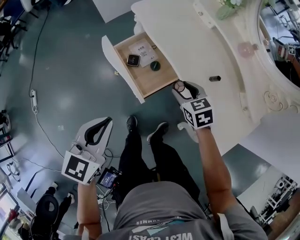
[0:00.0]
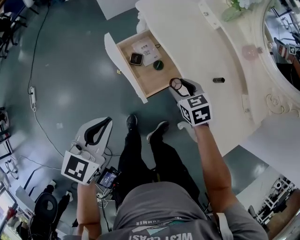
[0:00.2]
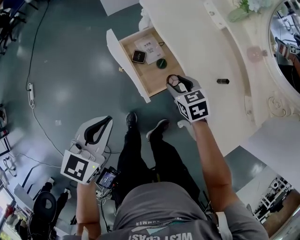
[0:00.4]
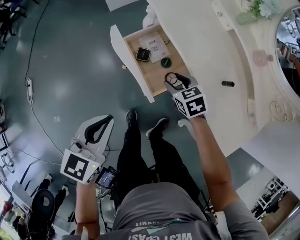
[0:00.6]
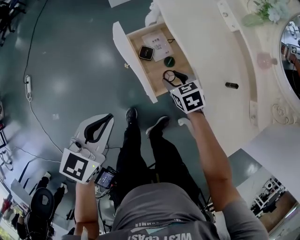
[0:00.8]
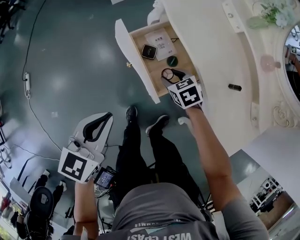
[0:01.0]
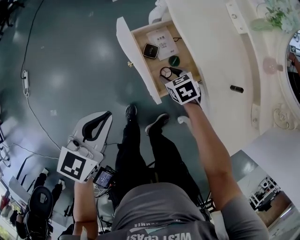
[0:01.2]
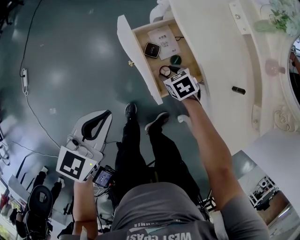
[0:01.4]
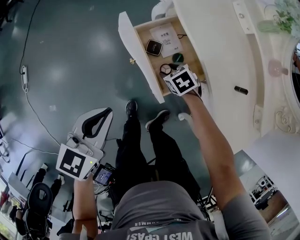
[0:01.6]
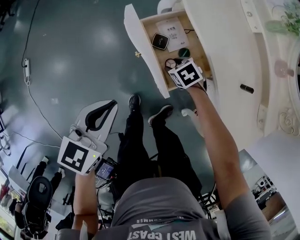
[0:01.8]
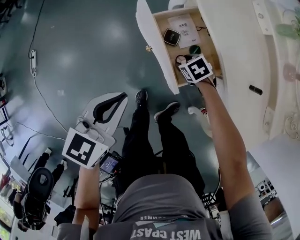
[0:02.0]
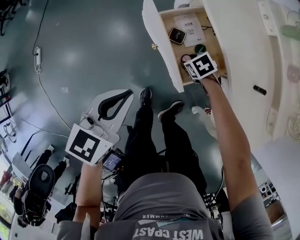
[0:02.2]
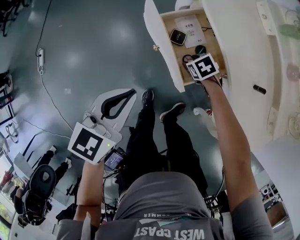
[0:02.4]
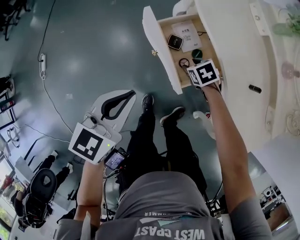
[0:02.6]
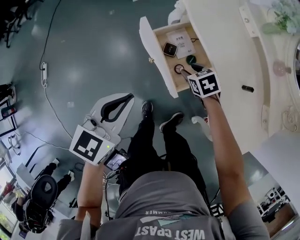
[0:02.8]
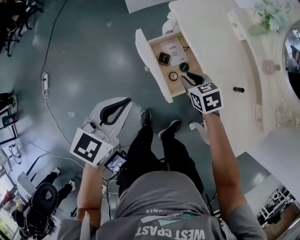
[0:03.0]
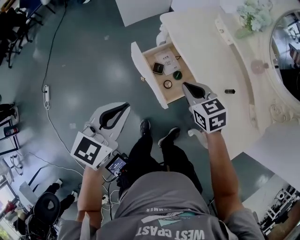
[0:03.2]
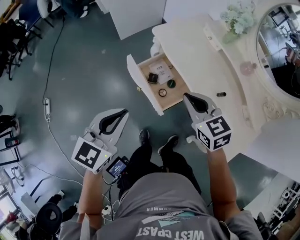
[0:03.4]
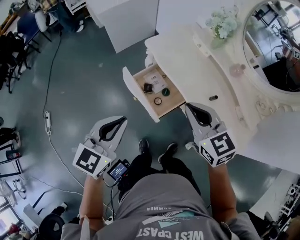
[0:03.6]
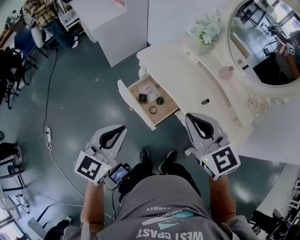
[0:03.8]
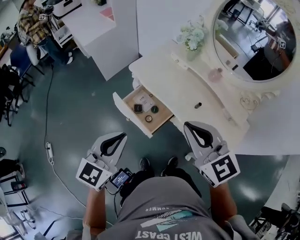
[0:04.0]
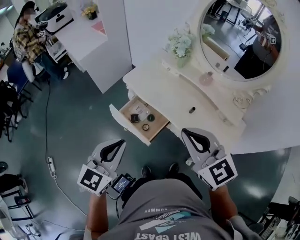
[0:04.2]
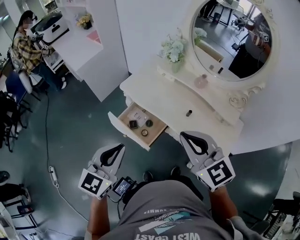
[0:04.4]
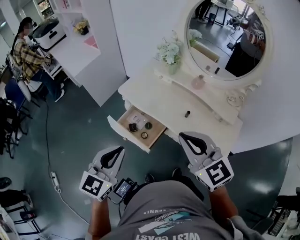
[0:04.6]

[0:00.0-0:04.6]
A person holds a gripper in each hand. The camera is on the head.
0:00.0 to 0:01.6: The left gripper heads to the left, downward and forward, covering about 15 cm. The right gripper heads downward and to the left, covering approximately 25 cm, and swivels about 30 degrees.
0:01.6 to 0:03.0: The left gripper shifts some 10 cm upward, while the right gripper shifts approximately 20 cm upward, turns by some 20 degrees, and closes its fingers.
0:03.0 to 0:04.6: The right gripper moves upward and backward, approximately 40 cm, tilts its fingers some 40 degrees upward, and closes, while the left gripper goes some 20 cm upward and to the right, and swivels some 30 degrees.

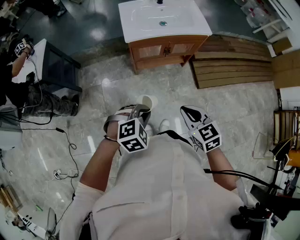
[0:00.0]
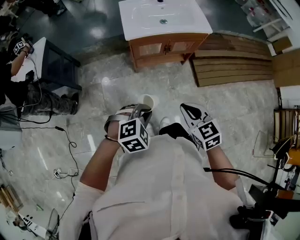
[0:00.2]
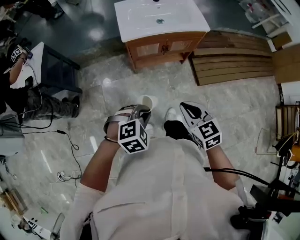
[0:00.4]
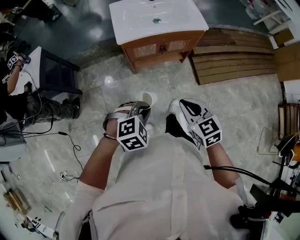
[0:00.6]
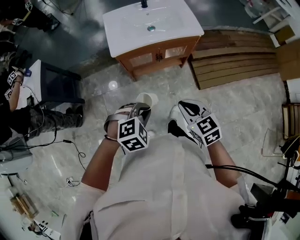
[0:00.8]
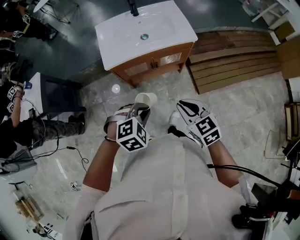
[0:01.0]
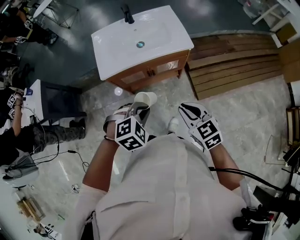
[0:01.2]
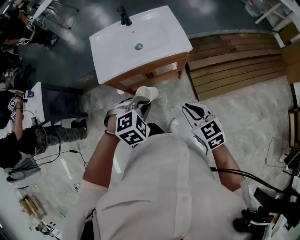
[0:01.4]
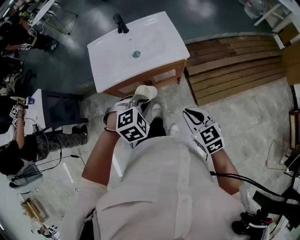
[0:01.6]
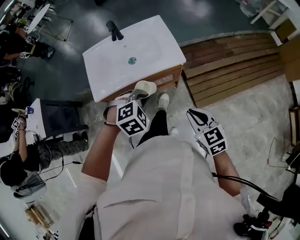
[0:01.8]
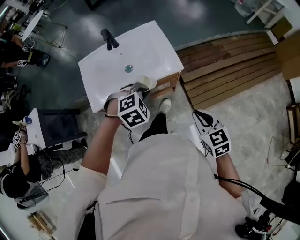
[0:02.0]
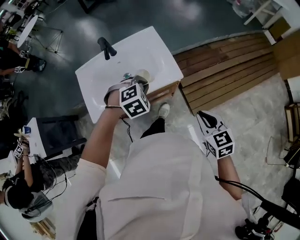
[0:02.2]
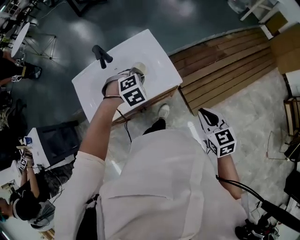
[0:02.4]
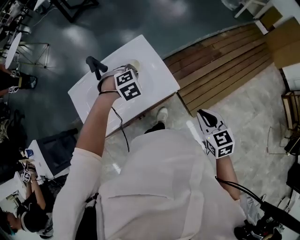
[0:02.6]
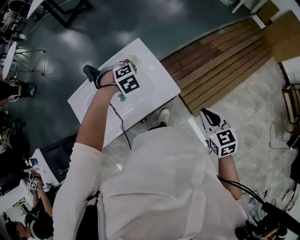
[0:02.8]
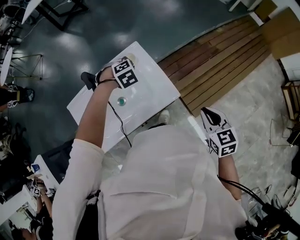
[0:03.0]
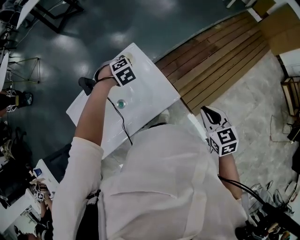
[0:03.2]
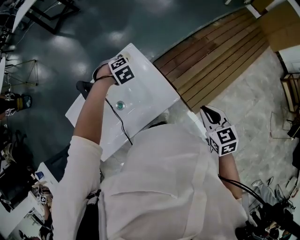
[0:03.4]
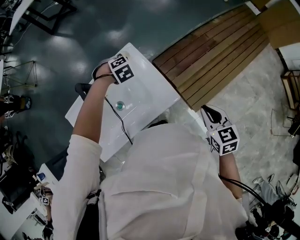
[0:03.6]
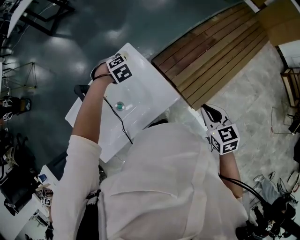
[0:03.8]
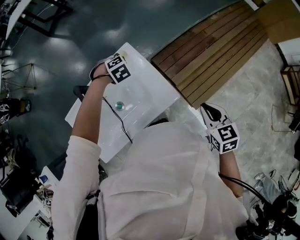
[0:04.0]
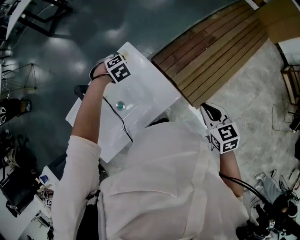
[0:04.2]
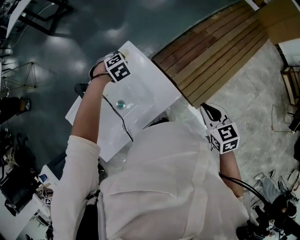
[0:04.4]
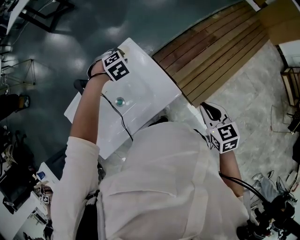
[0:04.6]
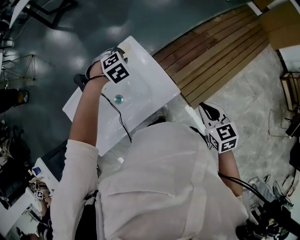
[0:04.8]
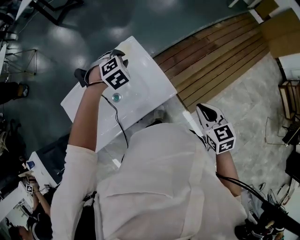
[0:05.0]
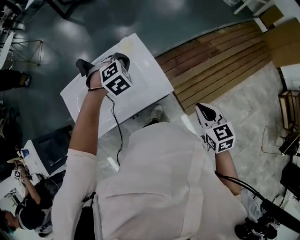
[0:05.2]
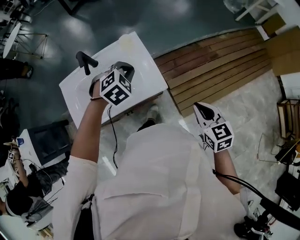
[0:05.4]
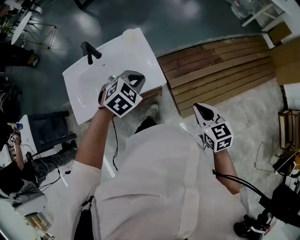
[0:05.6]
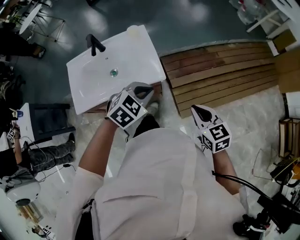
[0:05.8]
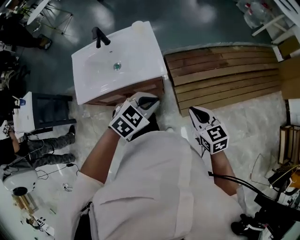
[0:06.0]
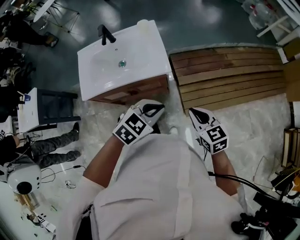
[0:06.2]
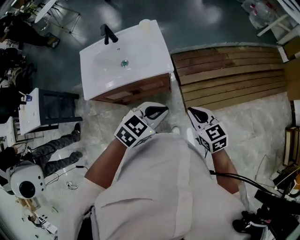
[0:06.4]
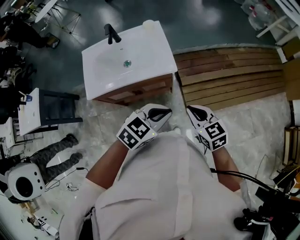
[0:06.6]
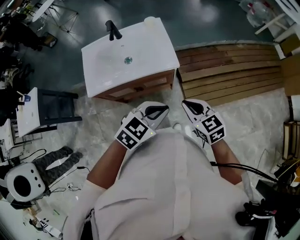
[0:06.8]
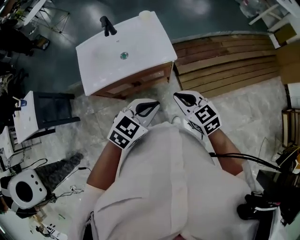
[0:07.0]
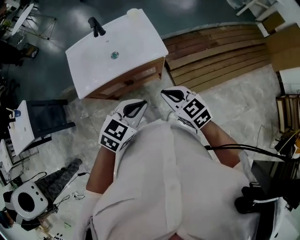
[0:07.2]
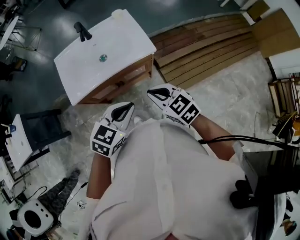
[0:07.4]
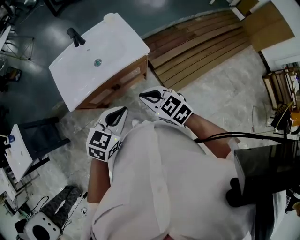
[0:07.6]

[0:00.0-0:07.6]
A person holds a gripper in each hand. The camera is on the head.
0:00.0 to 0:01.6: Both grippers travel together forward and to the right, about 35 cm.
0:01.6 to 0:03.0: The left gripper moves forward, approximately 50 cm; the right gripper travels forward and to the right by some 25 cm, and swivels approximately 30 degrees.
0:03.0 to 0:04.6: The left gripper moves about 5 cm.
0:04.6 to 0:06.0: The left gripper ends up approximately 50 cm from where it was, and tilts its fingers roughly 30 degrees upward. Meanwhile the right gripper moves roughly 15 cm, and rotates some 30 degrees.
0:06.0 to 0:07.6: The left gripper moves to the left and backward, roughly 20 cm, while the right gripper moves to the left, about 20 cm.

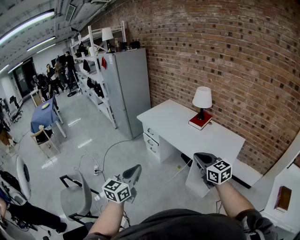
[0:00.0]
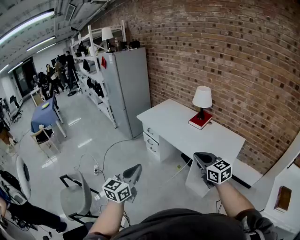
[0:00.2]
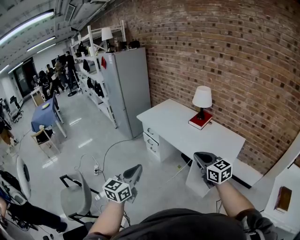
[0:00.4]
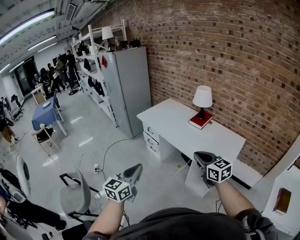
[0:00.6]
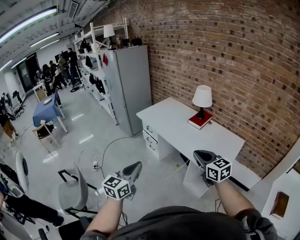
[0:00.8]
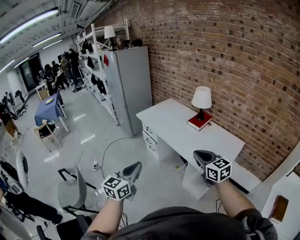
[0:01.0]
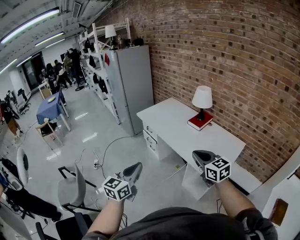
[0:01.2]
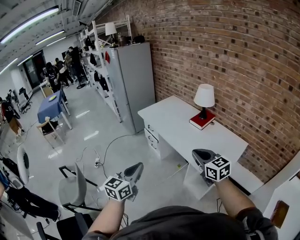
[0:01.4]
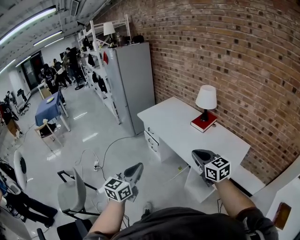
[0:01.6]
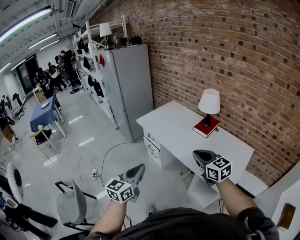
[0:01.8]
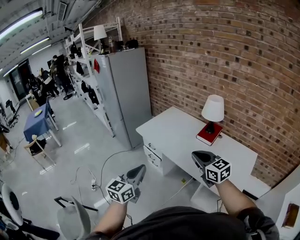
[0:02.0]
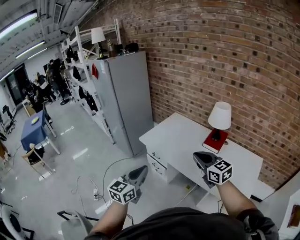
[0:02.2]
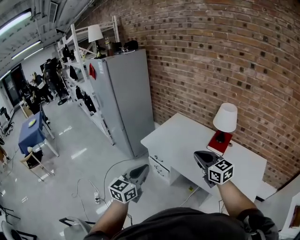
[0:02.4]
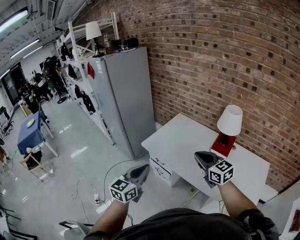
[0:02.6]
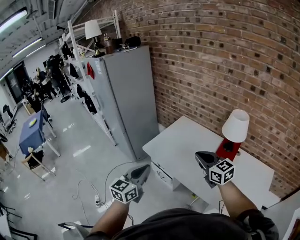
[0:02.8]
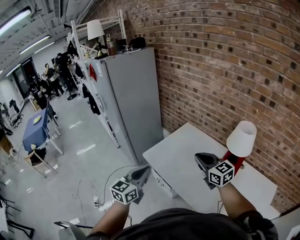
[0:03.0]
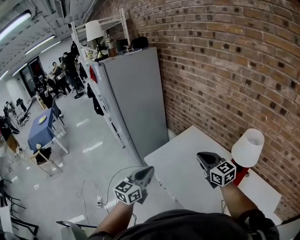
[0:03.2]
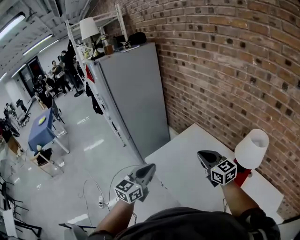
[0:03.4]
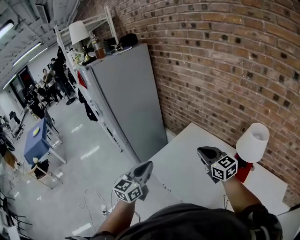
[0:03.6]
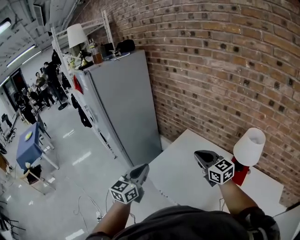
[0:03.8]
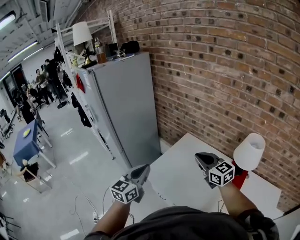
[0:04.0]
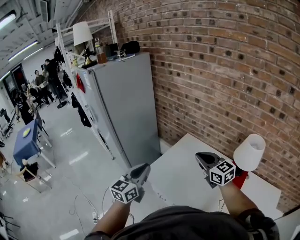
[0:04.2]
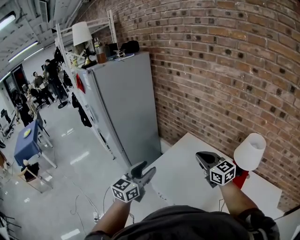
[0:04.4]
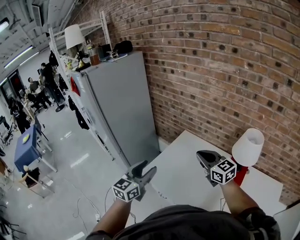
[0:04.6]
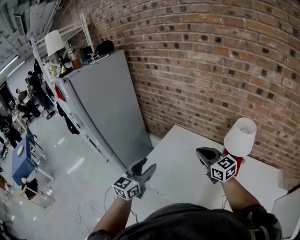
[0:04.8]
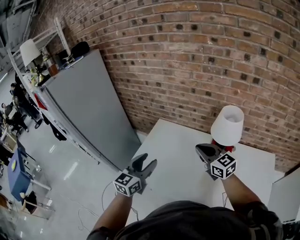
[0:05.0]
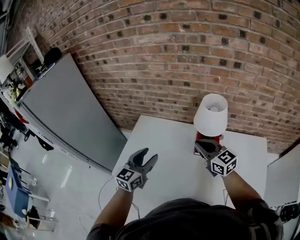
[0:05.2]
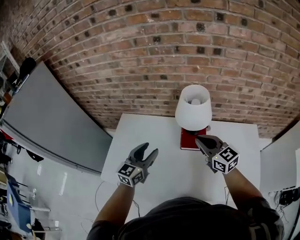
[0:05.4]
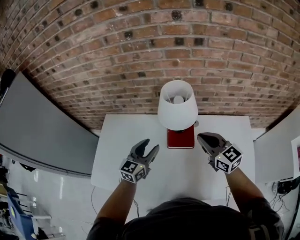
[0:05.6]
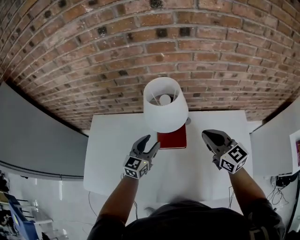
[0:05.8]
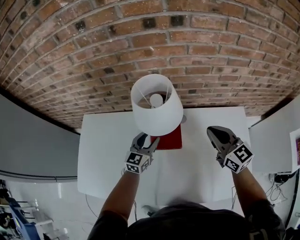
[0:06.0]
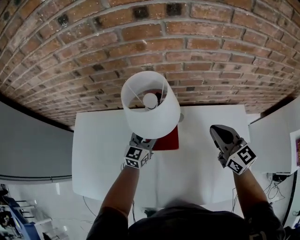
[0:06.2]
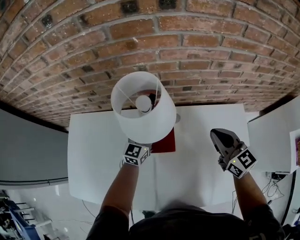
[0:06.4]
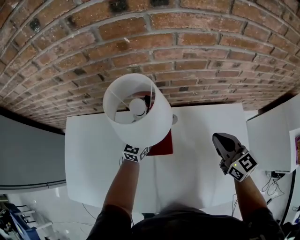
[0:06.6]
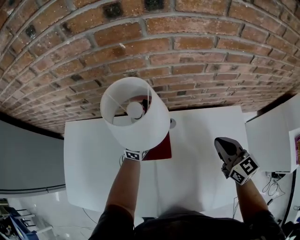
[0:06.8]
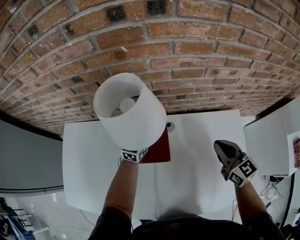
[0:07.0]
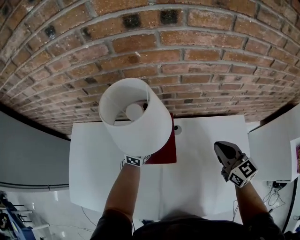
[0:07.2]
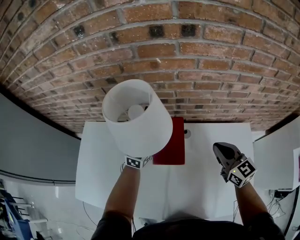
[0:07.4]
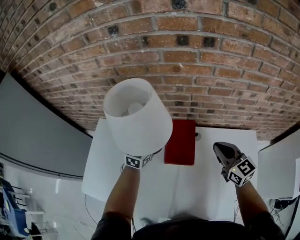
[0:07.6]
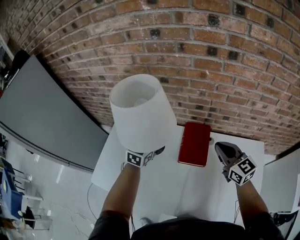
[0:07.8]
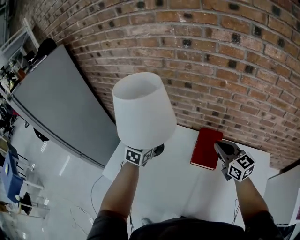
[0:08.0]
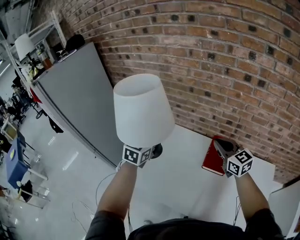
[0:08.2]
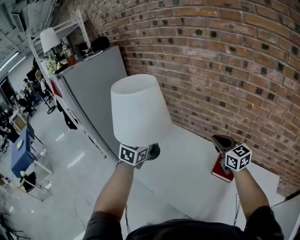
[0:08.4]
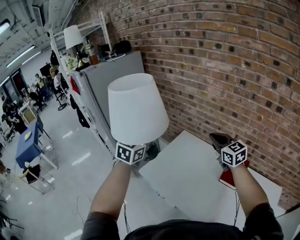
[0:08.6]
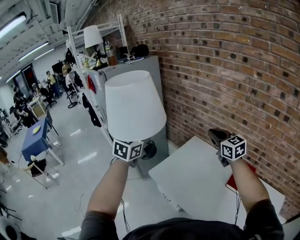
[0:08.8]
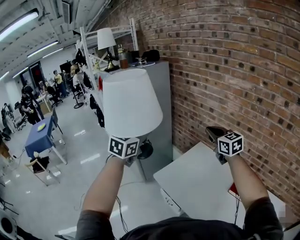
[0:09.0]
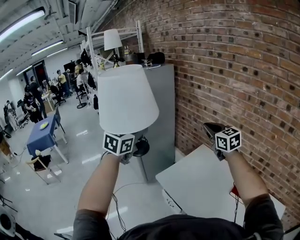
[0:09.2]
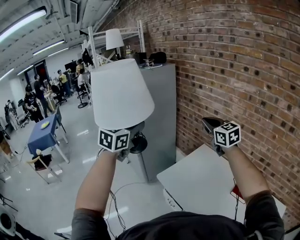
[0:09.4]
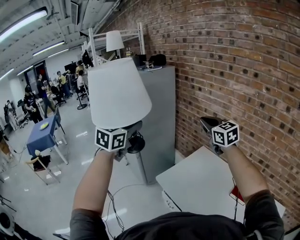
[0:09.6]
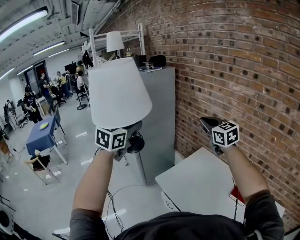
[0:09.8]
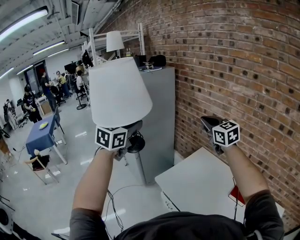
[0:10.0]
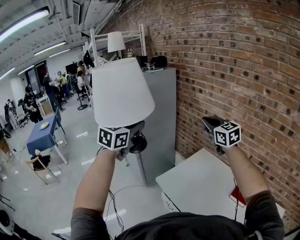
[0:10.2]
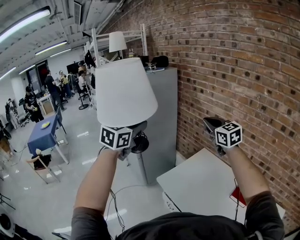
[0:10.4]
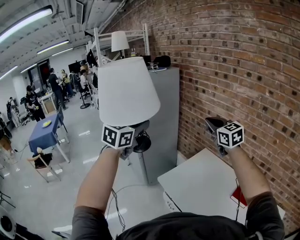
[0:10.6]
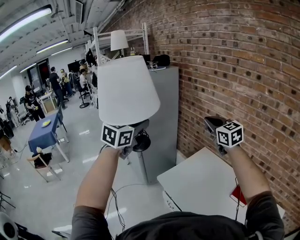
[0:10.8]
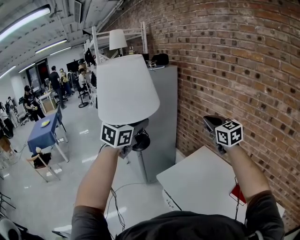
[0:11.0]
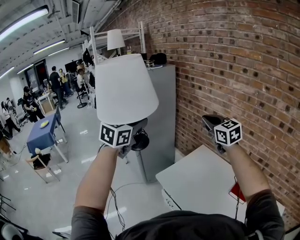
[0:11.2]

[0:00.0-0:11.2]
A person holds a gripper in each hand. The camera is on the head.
0:00.0 to 0:01.6: The right gripper travels forward and to the right by about 10 cm. Meanwhile the left gripper is displaced to the right and forward by approximately 10 cm.
0:01.6 to 0:03.2: The two grippers travel together, forward, some 60 cm.
0:03.2 to 0:04.8: The left gripper is displaced forward by roughly 10 cm, and opens up, while the right gripper heads forward, covering roughly 5 cm.
0:04.8 to 0:06.4: Both grippers are carried about 50 cm. The right gripper swivels approximately 40 degrees; the left gripper changes its angle by approximately 30 degrees.
0:06.4 to 0:08.0: The two grippers go about 30 cm to the left and upward. The left gripper rotates about 20 degrees, and closes its fingers.
0:08.0 to 0:09.6: The pair of grippers is taken roughly 50 cm. The right gripper rotates approximately 30 degrees. Meanwhile the left gripper changes its angle by about 30 degrees.
0:09.6 to 0:11.2: The grippers make only small movements.
